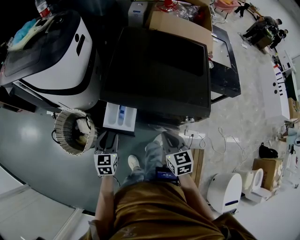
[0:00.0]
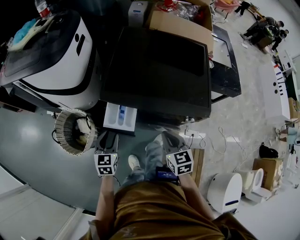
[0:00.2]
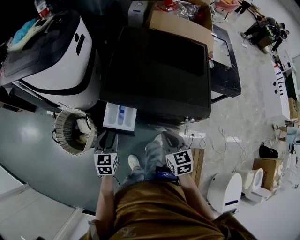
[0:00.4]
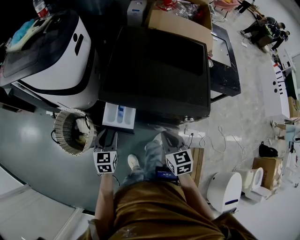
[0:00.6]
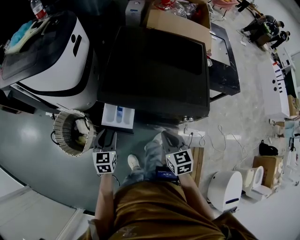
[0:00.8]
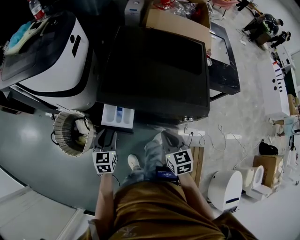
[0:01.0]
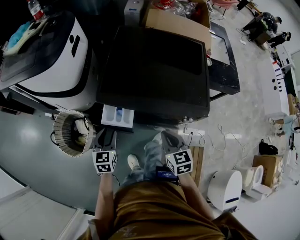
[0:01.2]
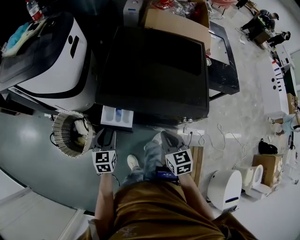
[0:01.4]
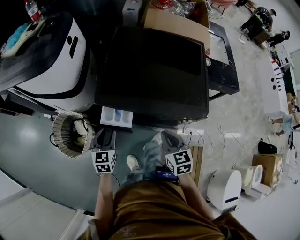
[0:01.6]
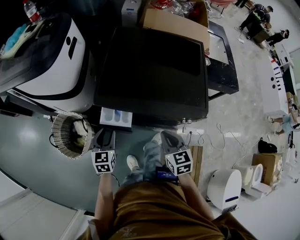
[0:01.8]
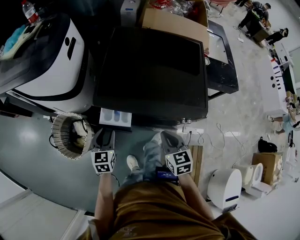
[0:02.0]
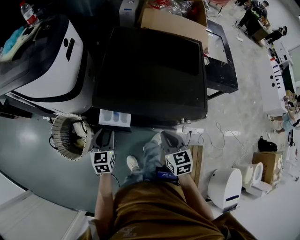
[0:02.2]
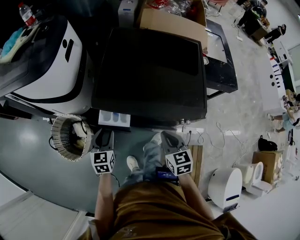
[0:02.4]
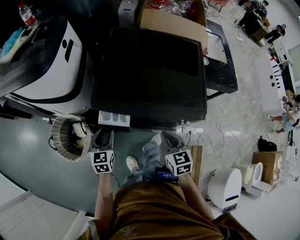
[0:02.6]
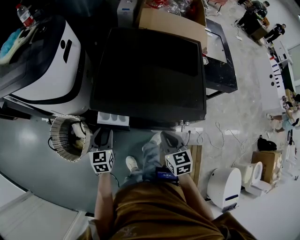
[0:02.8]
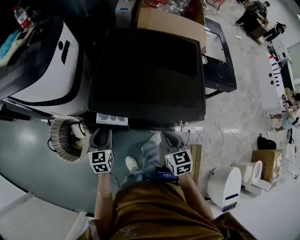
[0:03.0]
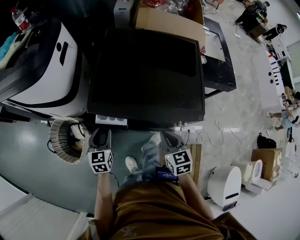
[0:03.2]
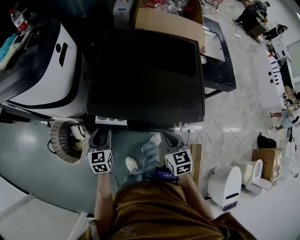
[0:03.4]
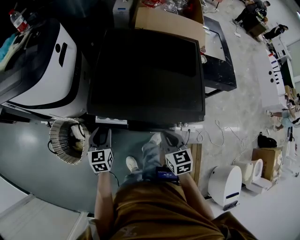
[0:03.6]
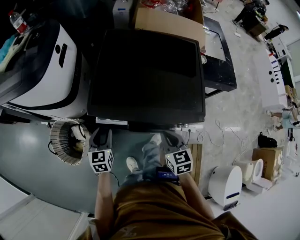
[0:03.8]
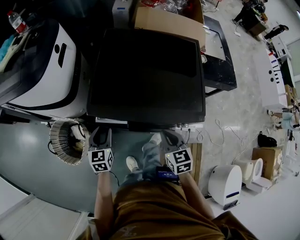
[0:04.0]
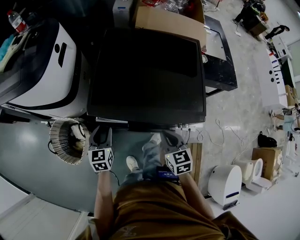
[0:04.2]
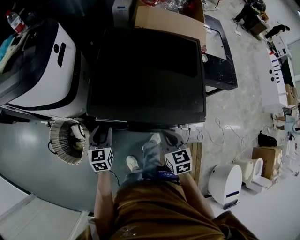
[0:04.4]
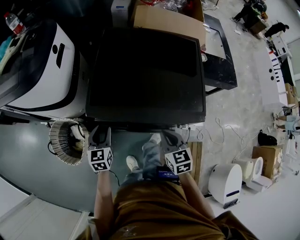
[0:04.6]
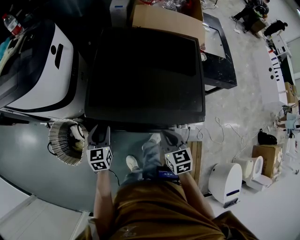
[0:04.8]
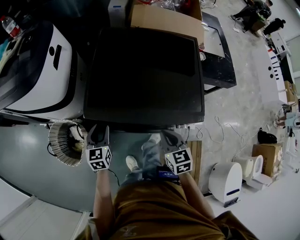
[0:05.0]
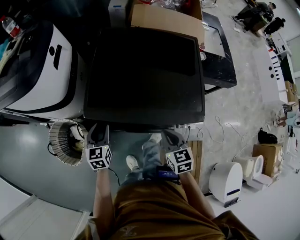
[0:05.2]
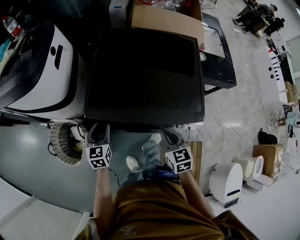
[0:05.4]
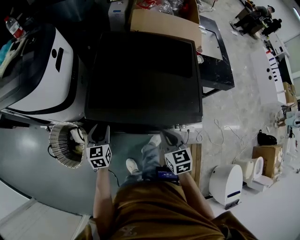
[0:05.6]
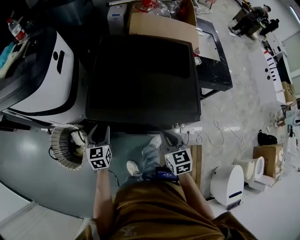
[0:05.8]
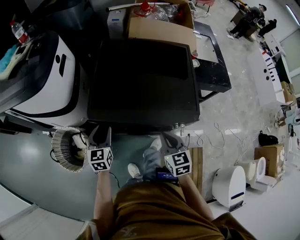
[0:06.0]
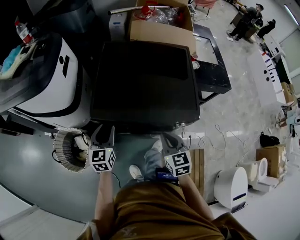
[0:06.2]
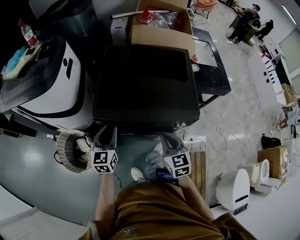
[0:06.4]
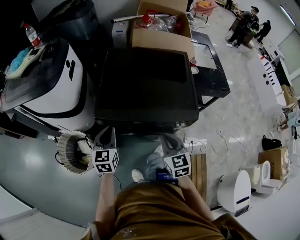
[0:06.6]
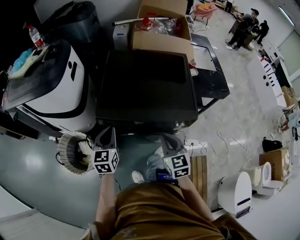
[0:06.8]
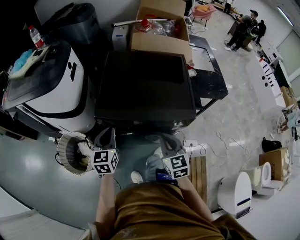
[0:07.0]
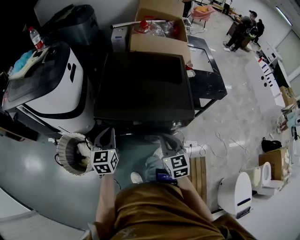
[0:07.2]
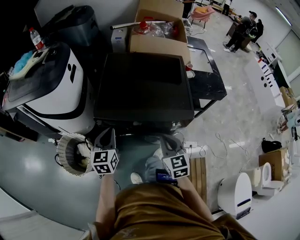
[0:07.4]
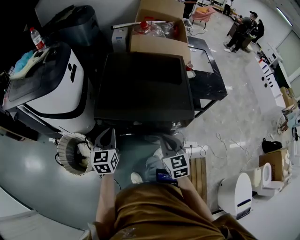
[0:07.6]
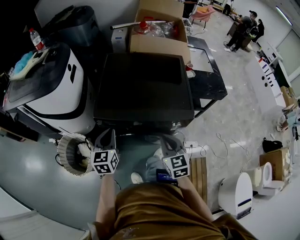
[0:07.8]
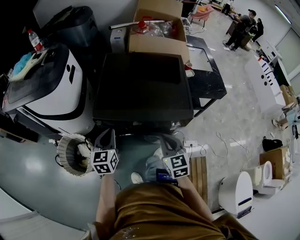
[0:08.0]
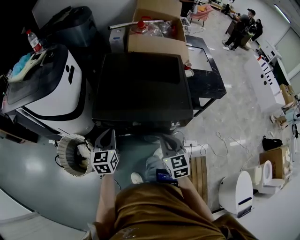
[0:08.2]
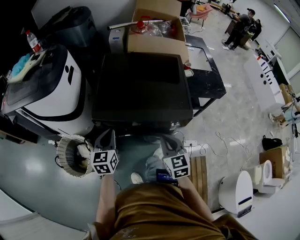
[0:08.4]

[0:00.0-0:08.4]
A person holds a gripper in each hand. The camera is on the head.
0:00.0 to 0:01.4: There are only small adjustments of the grippers.
0:01.4 to 0:02.8: The grippers move only a little.
0:02.8 to 0:05.6: The grippers stay close to where they were, moving slightly.
0:05.6 to 0:07.0: The right gripper is displaced backward and upward by some 10 cm. Meanwhile the left gripper heads upward and backward, covering some 15 cm, and closes up.
0:07.0 to 0:08.4: The grippers stay close to where they were, moving slightly.

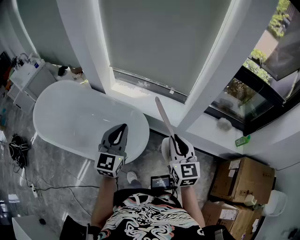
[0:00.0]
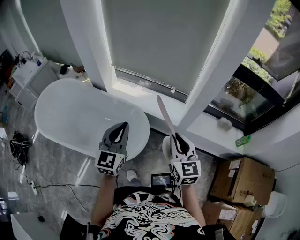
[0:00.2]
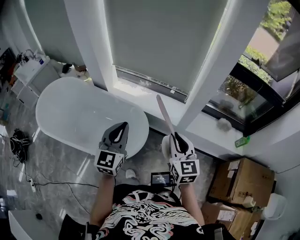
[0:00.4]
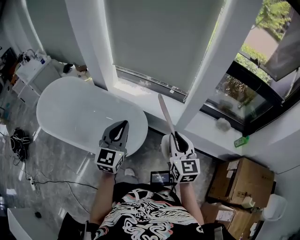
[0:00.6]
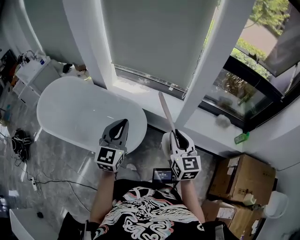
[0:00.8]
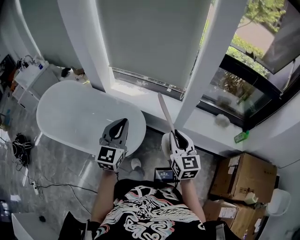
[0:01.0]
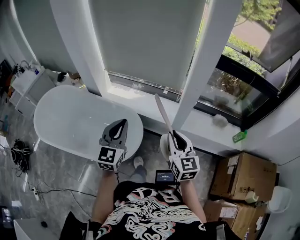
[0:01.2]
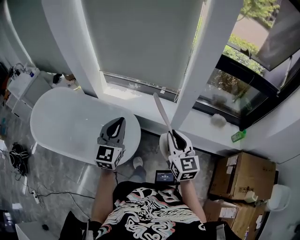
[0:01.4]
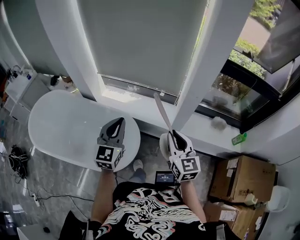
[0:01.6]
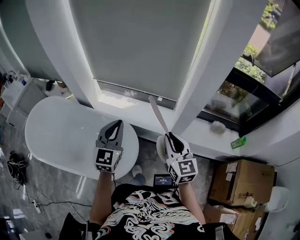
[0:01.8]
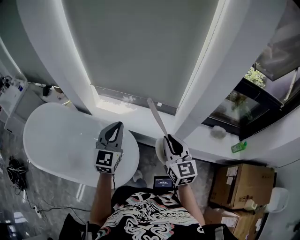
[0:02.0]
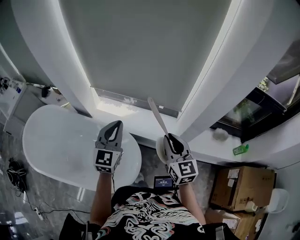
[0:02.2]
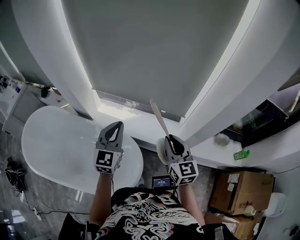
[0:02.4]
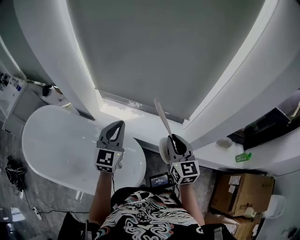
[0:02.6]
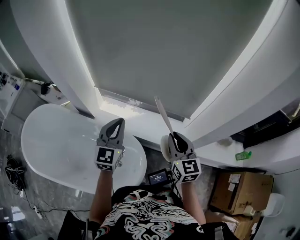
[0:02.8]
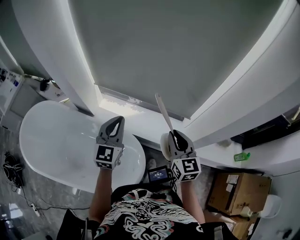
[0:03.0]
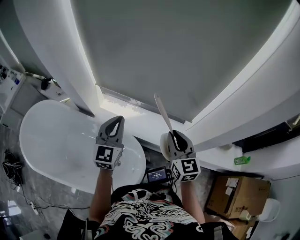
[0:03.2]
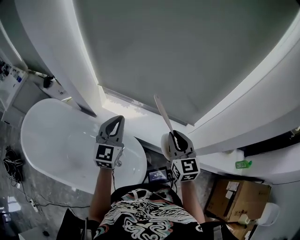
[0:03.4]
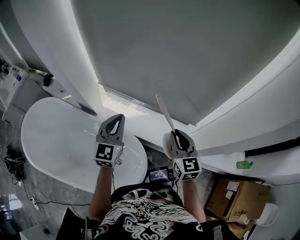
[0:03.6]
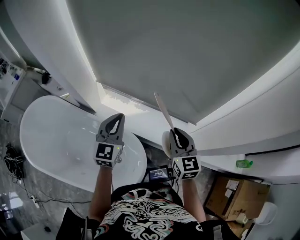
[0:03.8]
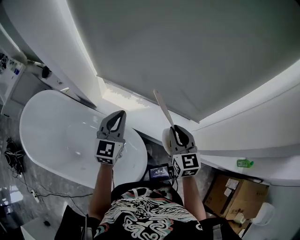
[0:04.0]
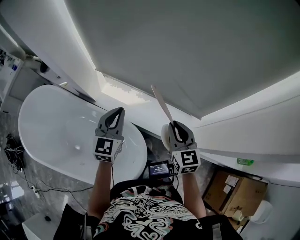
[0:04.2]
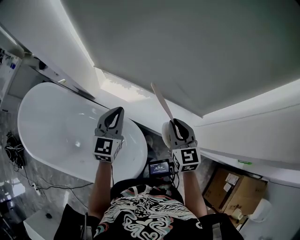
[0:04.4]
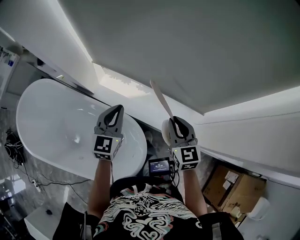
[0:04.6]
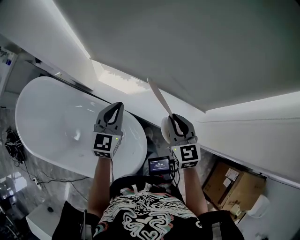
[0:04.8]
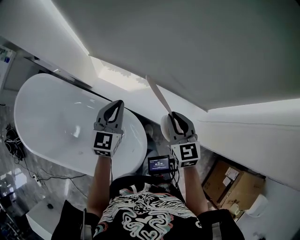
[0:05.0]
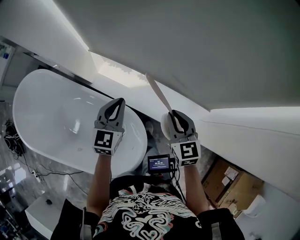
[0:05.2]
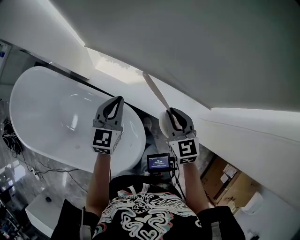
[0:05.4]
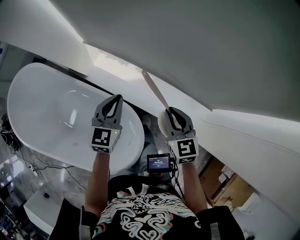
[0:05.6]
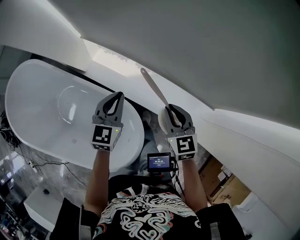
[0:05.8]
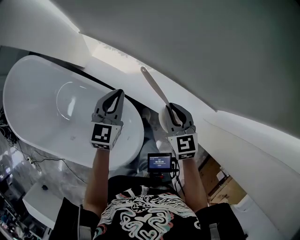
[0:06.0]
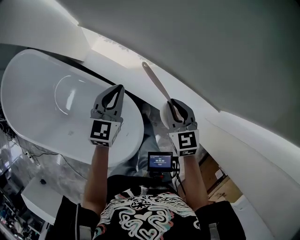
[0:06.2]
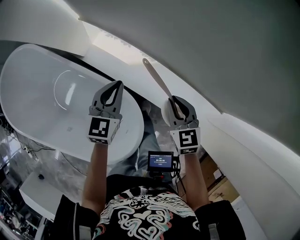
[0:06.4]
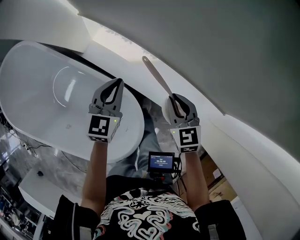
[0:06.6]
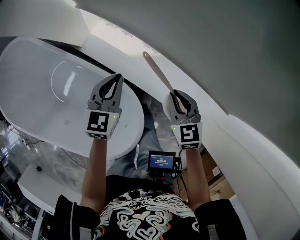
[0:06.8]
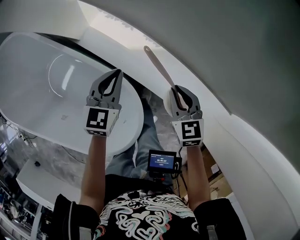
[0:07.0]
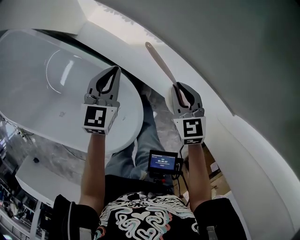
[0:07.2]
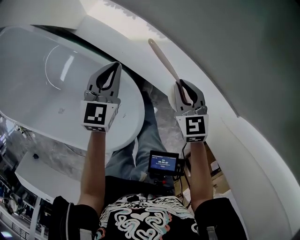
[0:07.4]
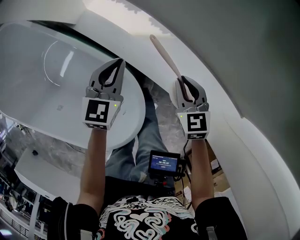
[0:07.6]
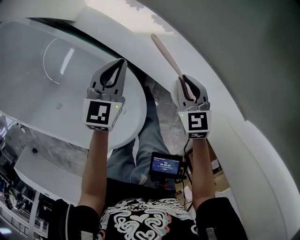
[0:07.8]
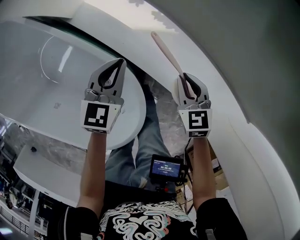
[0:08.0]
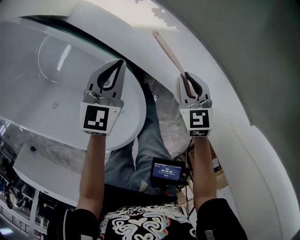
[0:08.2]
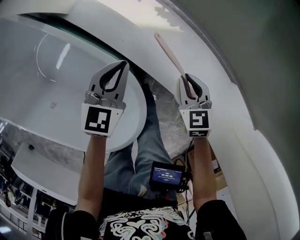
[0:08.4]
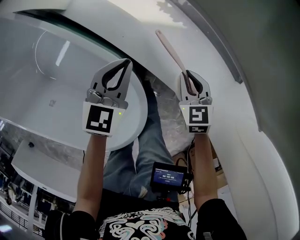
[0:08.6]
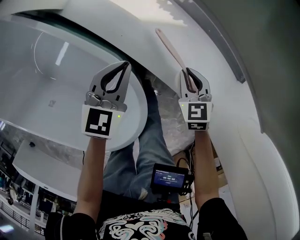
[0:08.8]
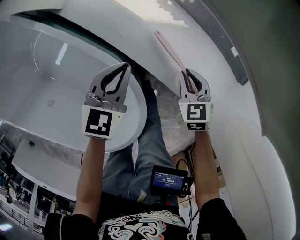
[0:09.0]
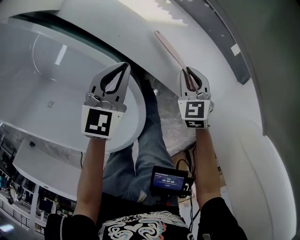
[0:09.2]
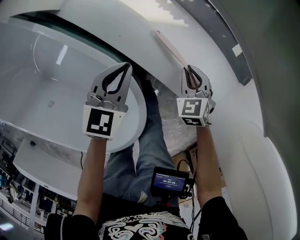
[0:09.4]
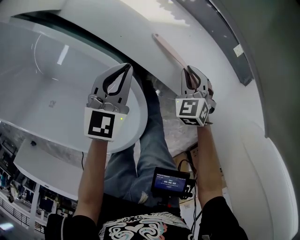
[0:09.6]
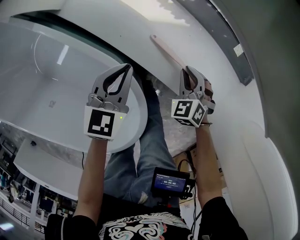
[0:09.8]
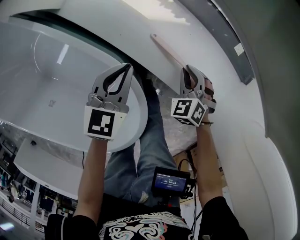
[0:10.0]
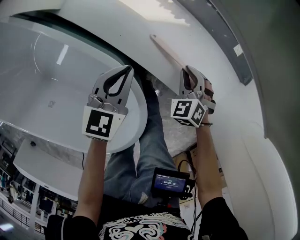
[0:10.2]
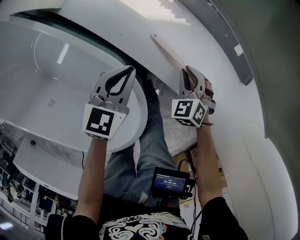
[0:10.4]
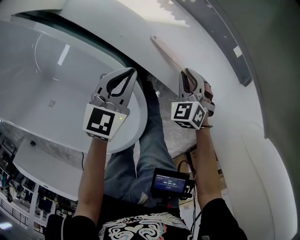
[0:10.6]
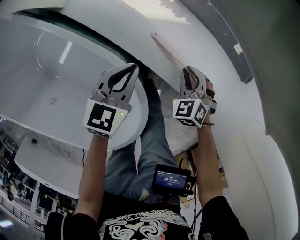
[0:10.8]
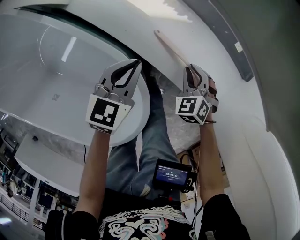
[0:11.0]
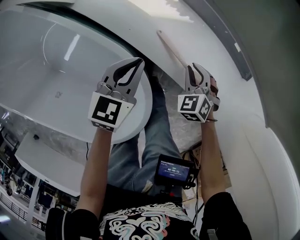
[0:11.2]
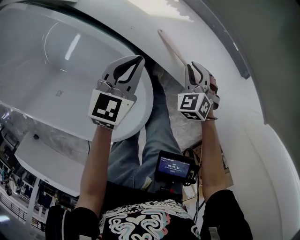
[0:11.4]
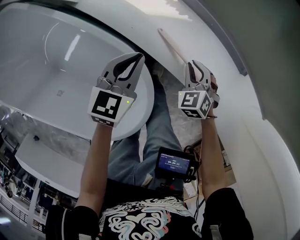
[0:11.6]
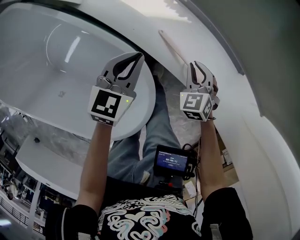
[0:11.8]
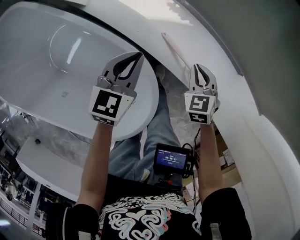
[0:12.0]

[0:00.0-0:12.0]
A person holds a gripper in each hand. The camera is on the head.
0:00.0 to 0:01.6: The right gripper goes roughly 10 cm to the right and forward, while the left gripper heads forward and to the right, covering roughly 10 cm.
0:01.6 to 0:03.0: Both grippers travel together forward and to the left, approximately 25 cm.
0:03.0 to 0:04.4: The two grippers go approximately 15 cm forward and downward.
0:04.4 to 0:06.0: The grippers both shift downward and forward by some 15 cm.
0:06.0 to 0:07.6: The grippers both shift downward by about 15 cm.
0:07.6 to 0:09.0: The right gripper goes approximately 15 cm downward; the left gripper travels downward by about 10 cm.
0:09.0 to 0:10.4: The right gripper rotates roughly 20 degrees.
0:10.4 to 0:12.0: Both grippers move upward, about 10 cm.

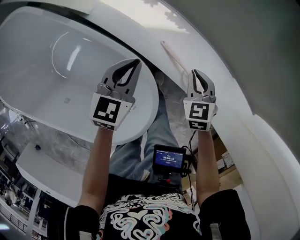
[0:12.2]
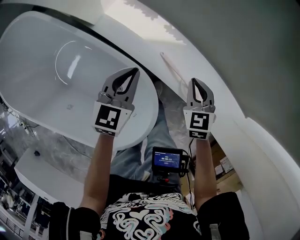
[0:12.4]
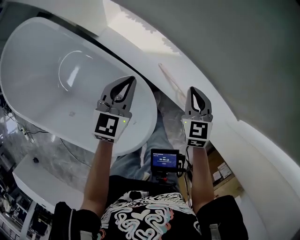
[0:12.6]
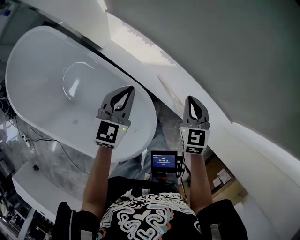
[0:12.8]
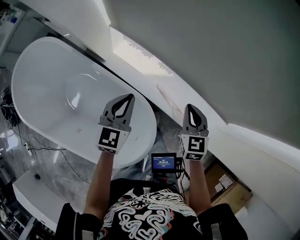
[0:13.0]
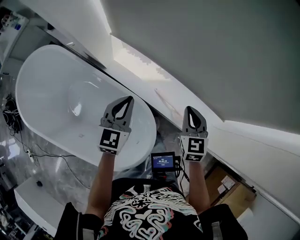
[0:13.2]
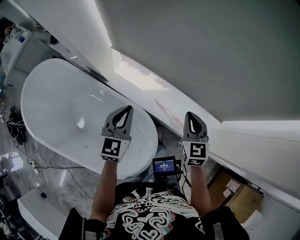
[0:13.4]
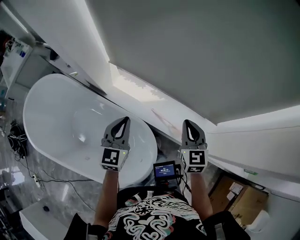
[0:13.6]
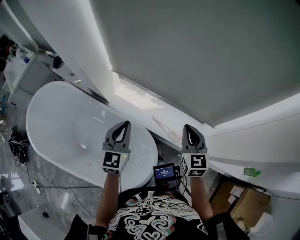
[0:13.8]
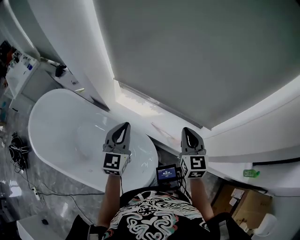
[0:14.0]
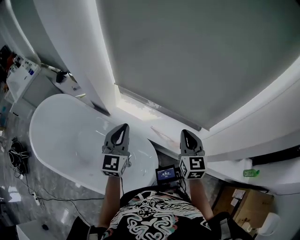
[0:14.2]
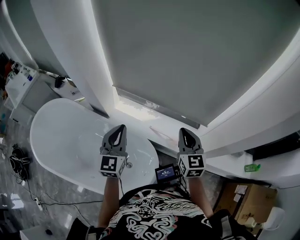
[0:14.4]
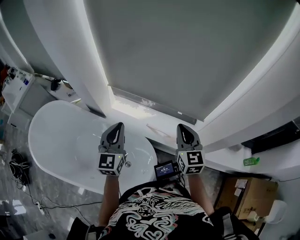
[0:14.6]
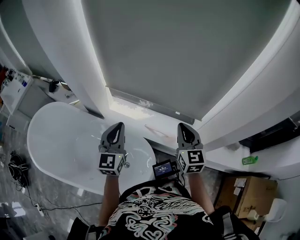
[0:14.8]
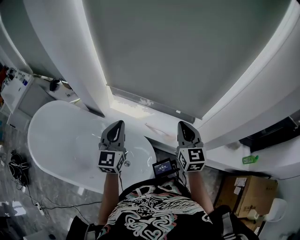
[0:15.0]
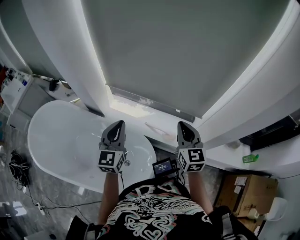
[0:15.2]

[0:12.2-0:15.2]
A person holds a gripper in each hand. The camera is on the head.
0:12.2 to 0:13.8: The two grippers go approximately 35 cm upward. The left gripper turns by roughly 20 degrees. Meanwhile the right gripper changes its angle by approximately 30 degrees.
0:13.8 to 0:15.2: The right gripper goes some 10 cm backward and upward. The left gripper travels upward and backward by approximately 10 cm.
